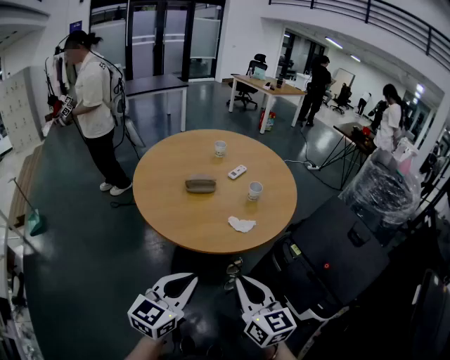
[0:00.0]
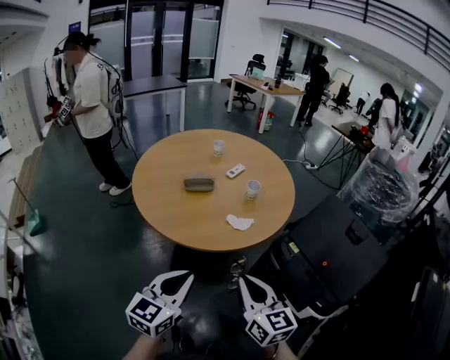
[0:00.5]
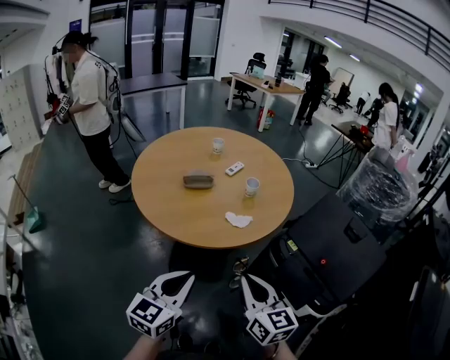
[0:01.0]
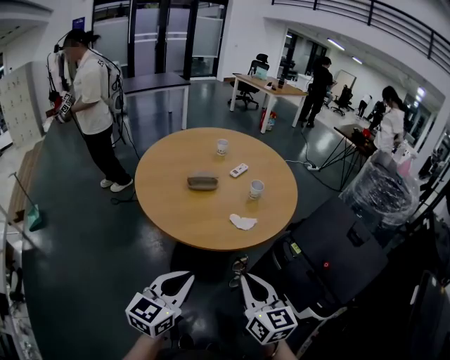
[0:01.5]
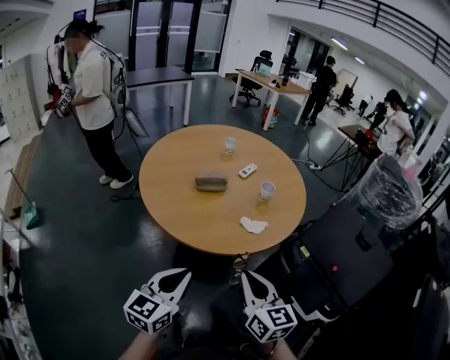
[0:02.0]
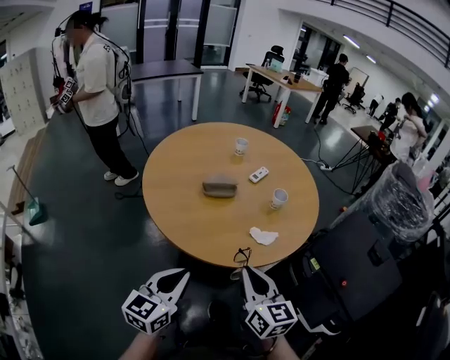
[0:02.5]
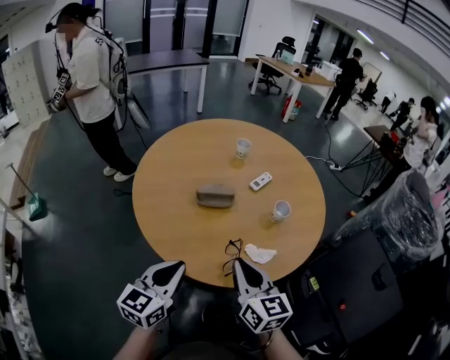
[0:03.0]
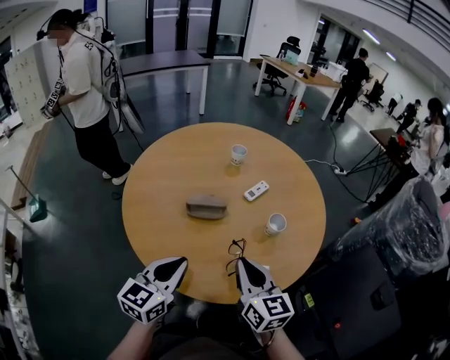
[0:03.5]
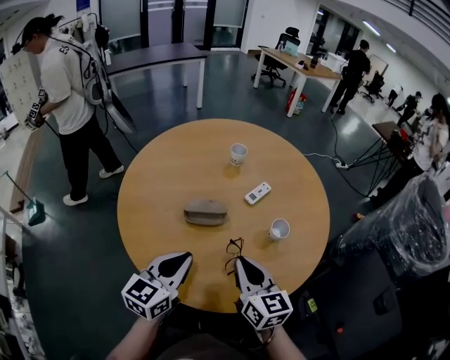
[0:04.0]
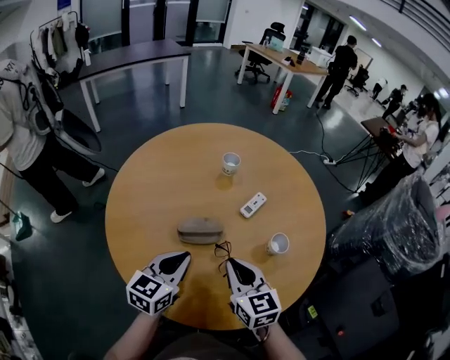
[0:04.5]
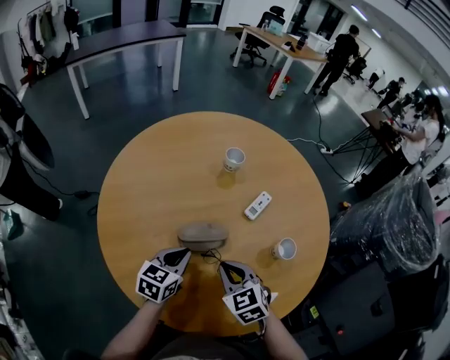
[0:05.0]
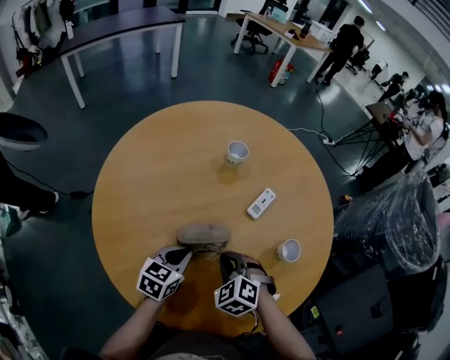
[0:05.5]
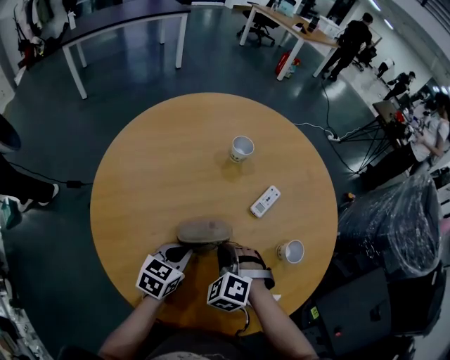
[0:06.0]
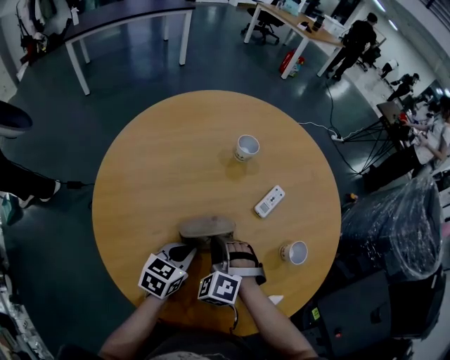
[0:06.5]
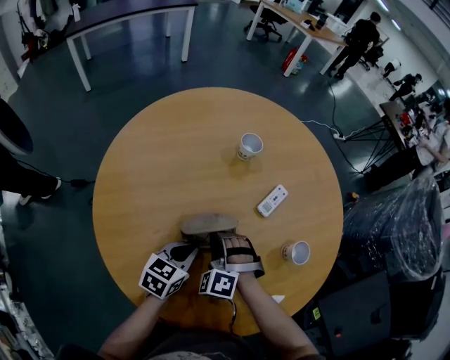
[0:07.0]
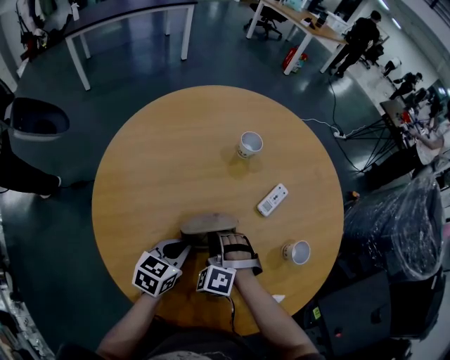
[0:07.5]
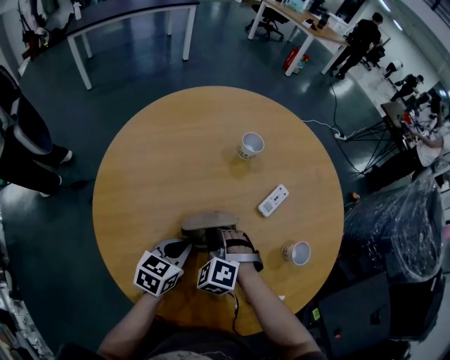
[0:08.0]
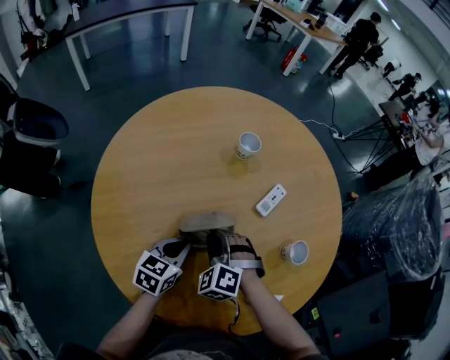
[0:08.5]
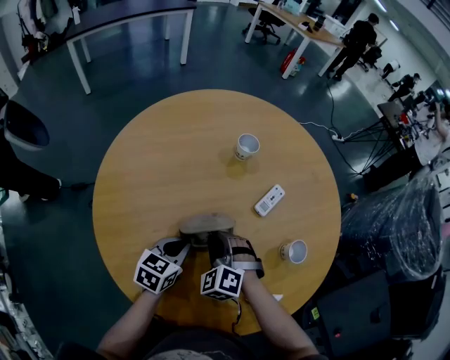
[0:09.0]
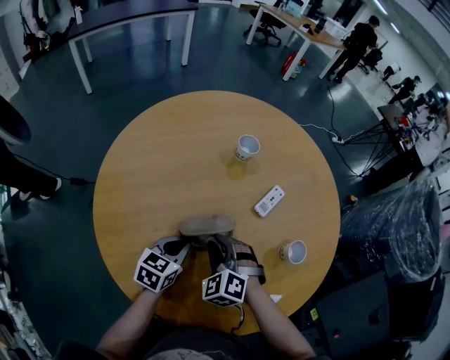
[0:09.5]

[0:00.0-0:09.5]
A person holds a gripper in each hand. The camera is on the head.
0:00.0 to 0:02.0: The right gripper changes place by about 5 cm. The left gripper goes roughly 10 cm to the left.
0:02.0 to 0:04.0: The grippers both shift forward by approximately 35 cm.
0:04.0 to 0:05.5: The left gripper travels forward and downward by approximately 25 cm, and swivels about 30 degrees. The right gripper shifts roughly 20 cm downward, forward and to the left, and angles its fingers downward, by about 40 degrees.
0:05.5 to 0:07.5: The right gripper heads to the left, covering approximately 5 cm, and rotates some 30 degrees.
0:07.5 to 0:09.5: The grippers make only small movements.

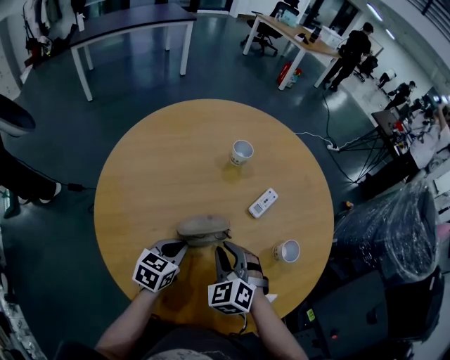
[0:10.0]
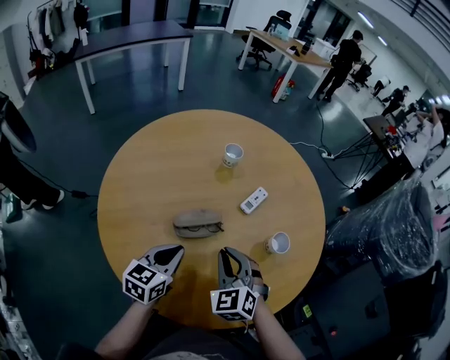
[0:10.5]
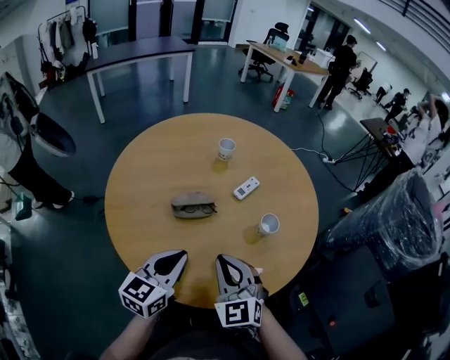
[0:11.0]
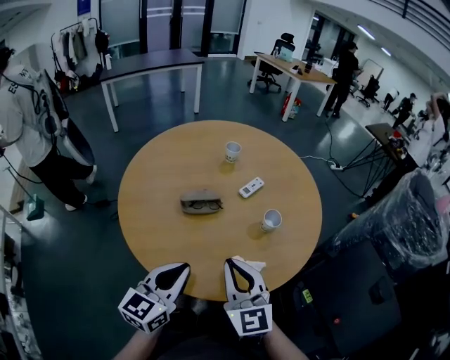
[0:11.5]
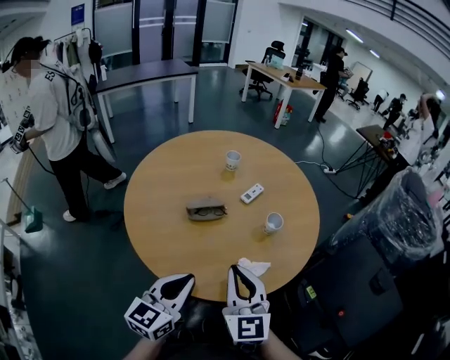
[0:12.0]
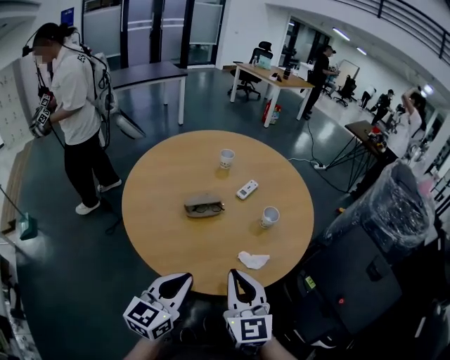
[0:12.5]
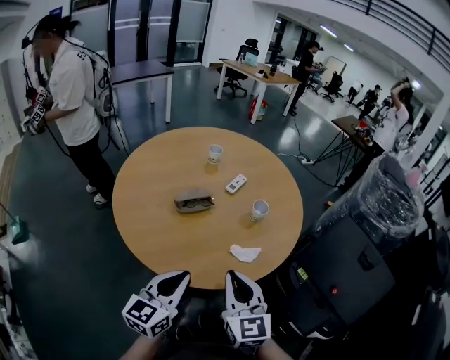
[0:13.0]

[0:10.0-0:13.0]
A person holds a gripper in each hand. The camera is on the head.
0:10.0 to 0:11.5: The right gripper shifts some 30 cm backward, upward and to the right, and points its fingers about 40 degrees further upward, while the left gripper moves backward and upward, some 30 cm, and rotates some 30 degrees.
0:11.5 to 0:13.0: Both grippers move backward, about 10 cm.

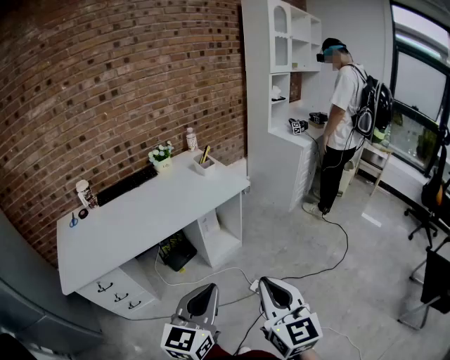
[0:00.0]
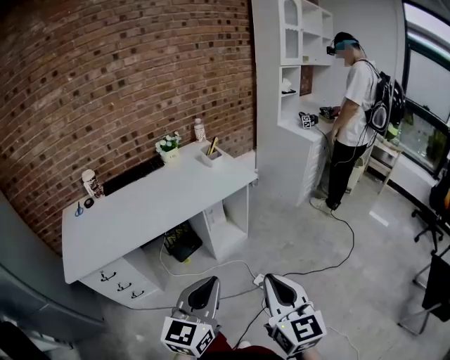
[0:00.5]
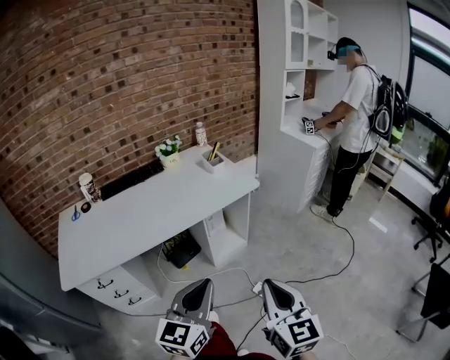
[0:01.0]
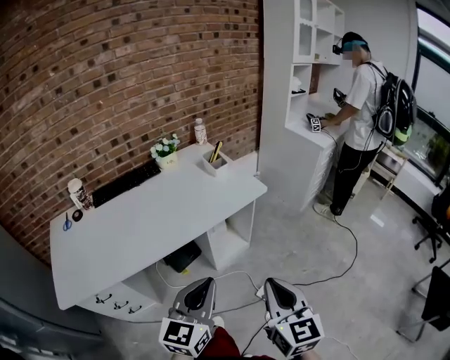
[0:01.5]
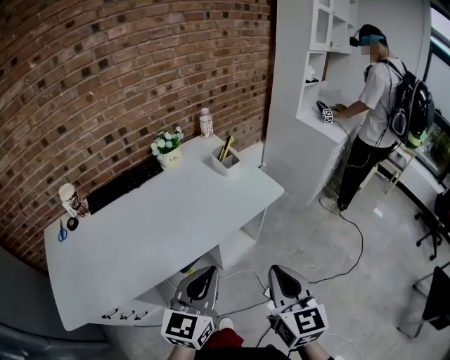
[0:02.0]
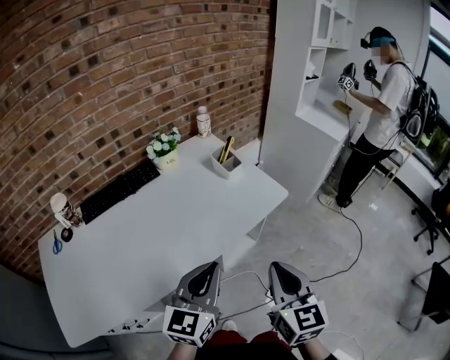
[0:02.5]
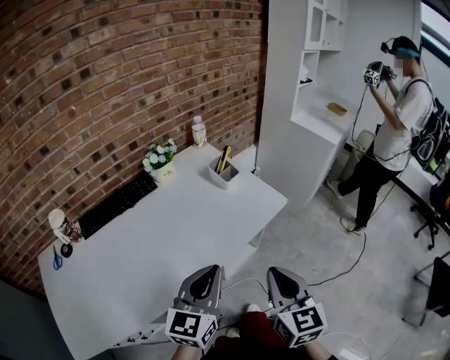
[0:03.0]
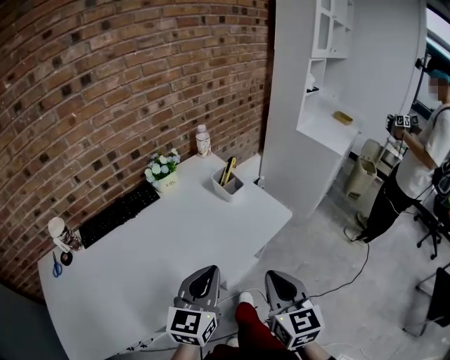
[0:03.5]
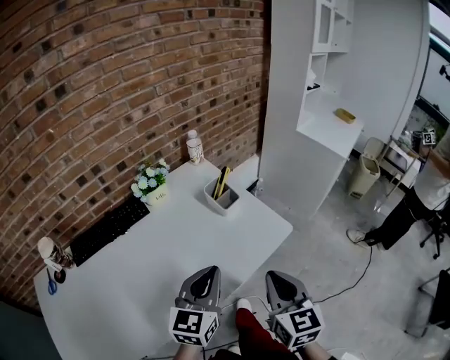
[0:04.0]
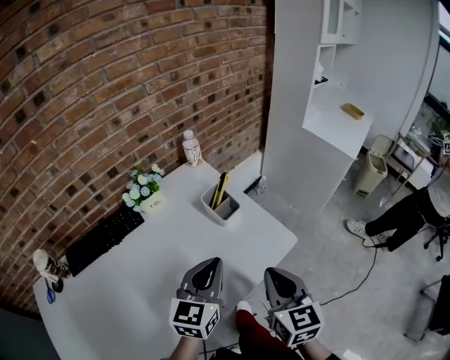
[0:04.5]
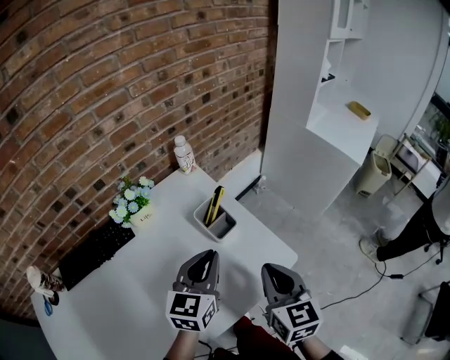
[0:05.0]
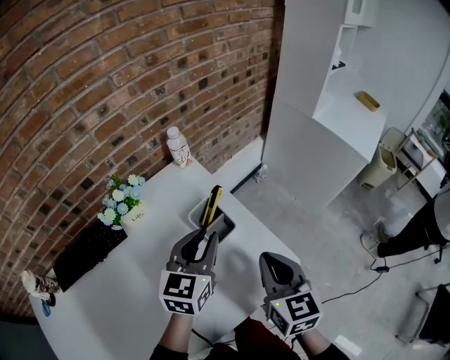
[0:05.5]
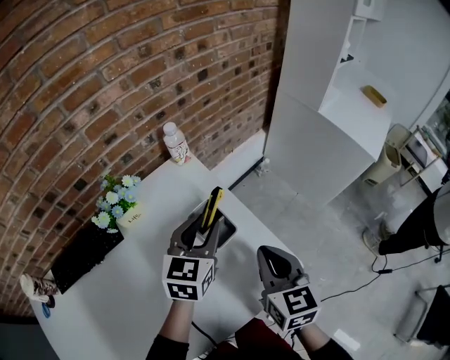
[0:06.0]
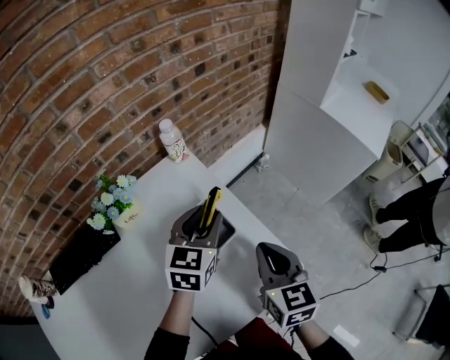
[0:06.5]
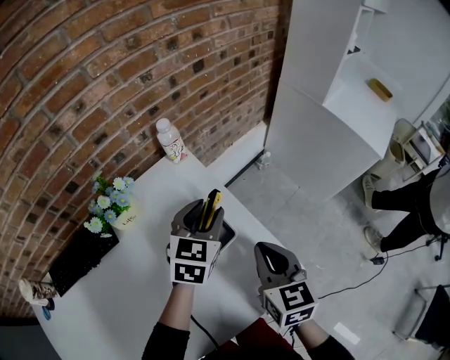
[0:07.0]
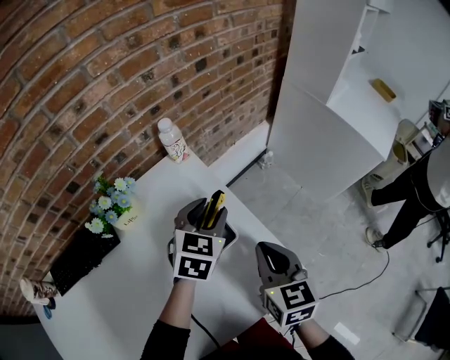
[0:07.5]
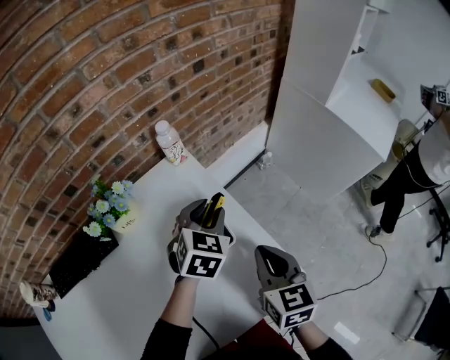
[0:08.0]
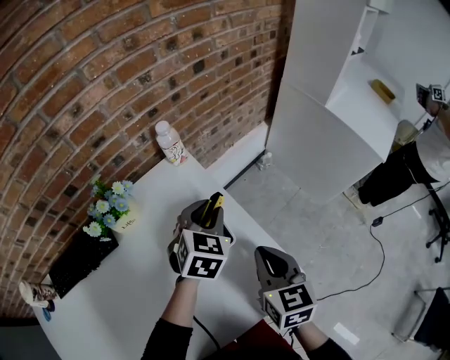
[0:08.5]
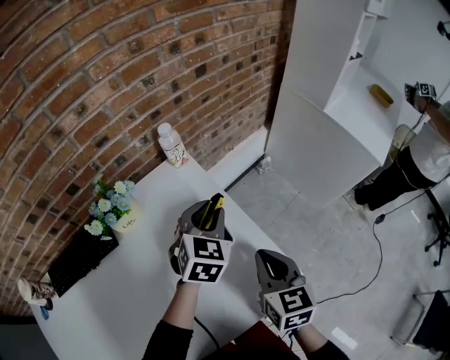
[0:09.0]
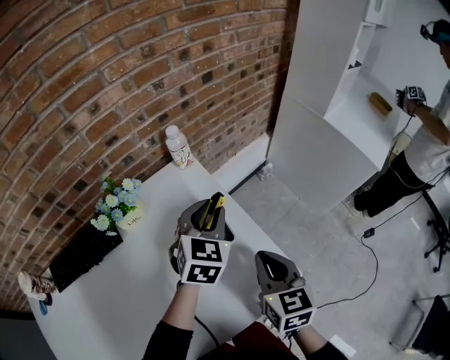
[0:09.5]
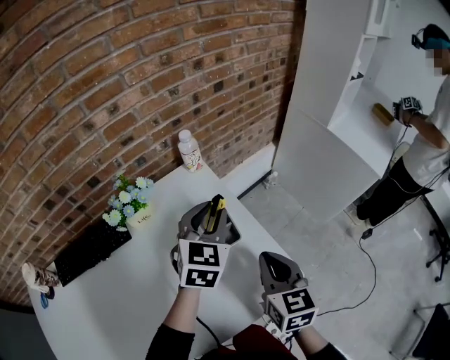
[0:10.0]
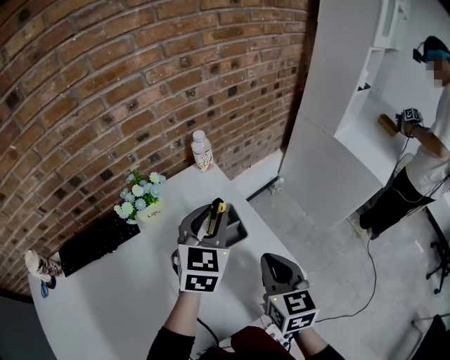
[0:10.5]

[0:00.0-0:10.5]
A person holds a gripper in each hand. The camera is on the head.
0:00.0 to 0:02.0: The left gripper goes roughly 30 cm forward and to the left; the right gripper moves forward, some 25 cm.
0:02.0 to 0:04.0: Both grippers travel together forward, some 20 cm.
0:04.0 to 0:06.5: Both grippers travel together forward, roughly 30 cm. The left gripper opens.
0:06.5 to 0:08.5: The left gripper moves roughly 5 cm.
0:08.5 to 0:10.5: The left gripper goes about 10 cm upward and backward; the right gripper changes place by some 5 cm.

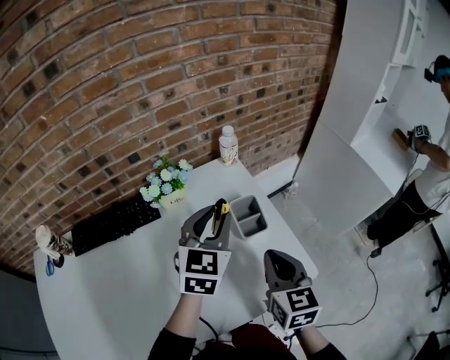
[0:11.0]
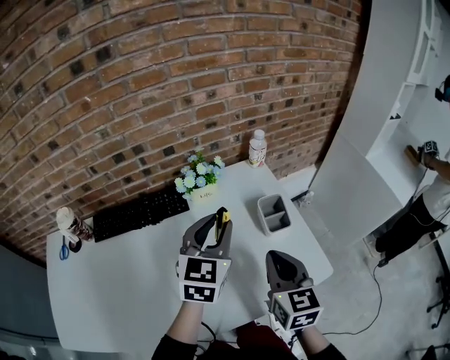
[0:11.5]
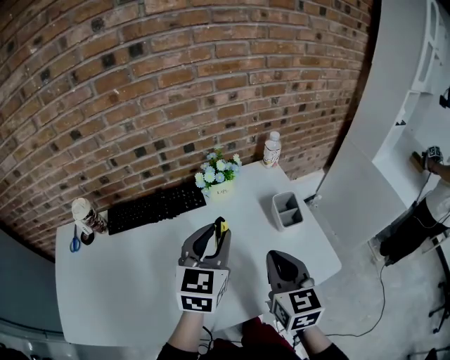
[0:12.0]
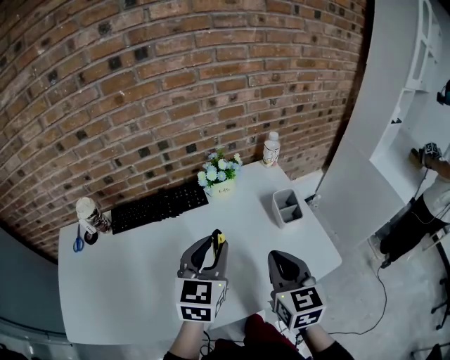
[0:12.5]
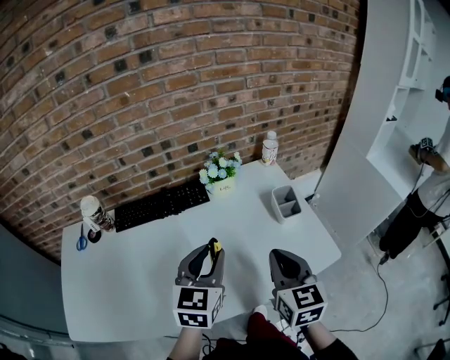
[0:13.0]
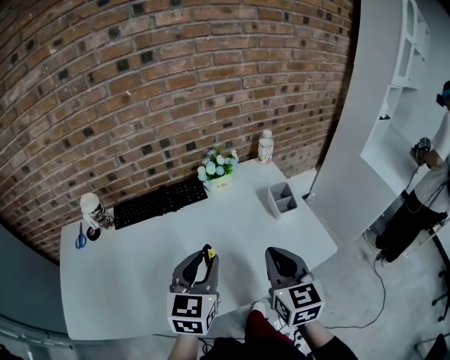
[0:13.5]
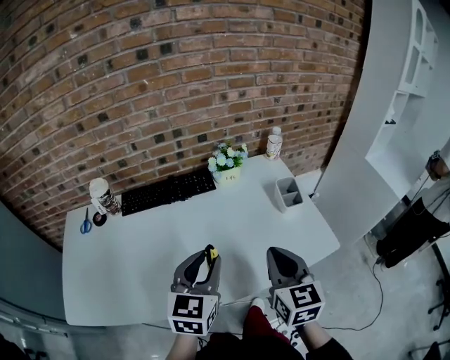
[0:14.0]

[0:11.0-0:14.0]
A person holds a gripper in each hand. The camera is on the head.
0:11.0 to 0:12.5: Both grippers travel together to the left and backward, about 20 cm.
0:12.5 to 0:14.0: The right gripper goes about 10 cm backward, while the left gripper shifts approximately 10 cm backward.
